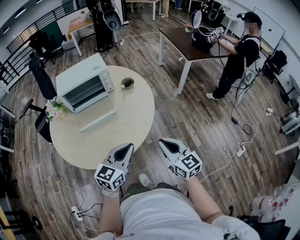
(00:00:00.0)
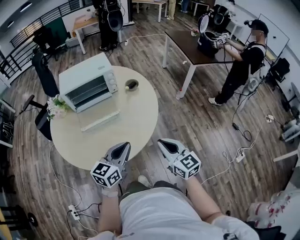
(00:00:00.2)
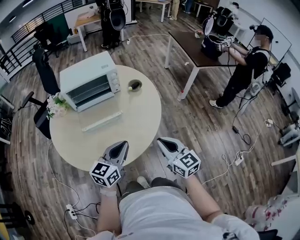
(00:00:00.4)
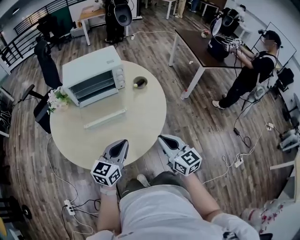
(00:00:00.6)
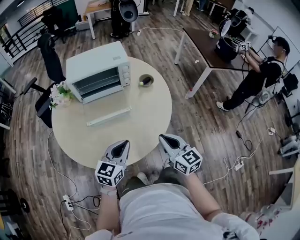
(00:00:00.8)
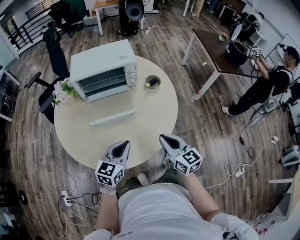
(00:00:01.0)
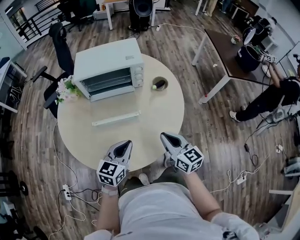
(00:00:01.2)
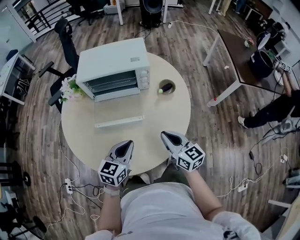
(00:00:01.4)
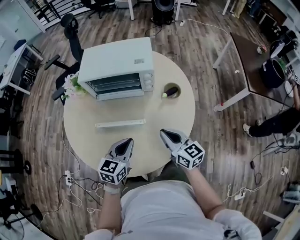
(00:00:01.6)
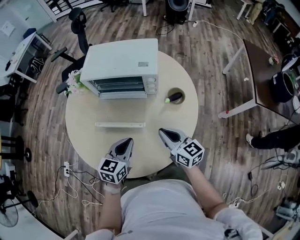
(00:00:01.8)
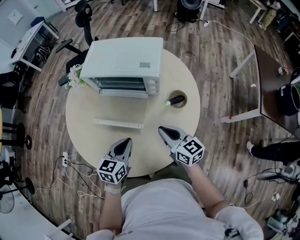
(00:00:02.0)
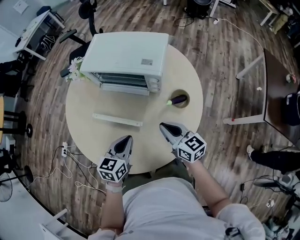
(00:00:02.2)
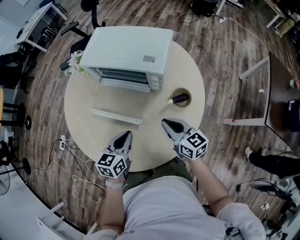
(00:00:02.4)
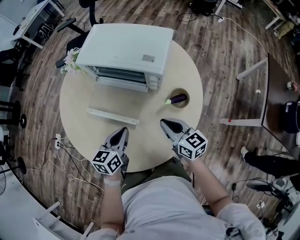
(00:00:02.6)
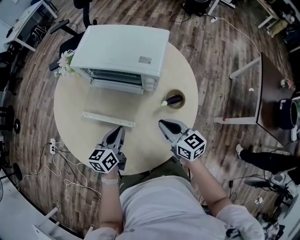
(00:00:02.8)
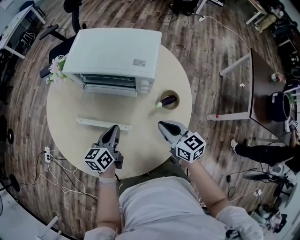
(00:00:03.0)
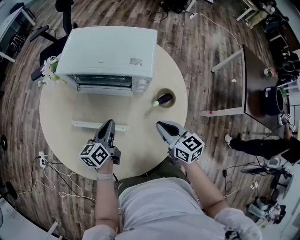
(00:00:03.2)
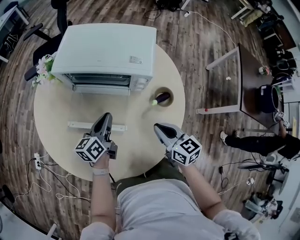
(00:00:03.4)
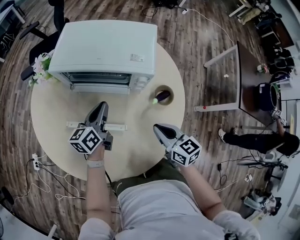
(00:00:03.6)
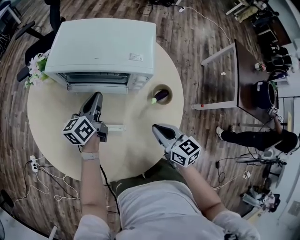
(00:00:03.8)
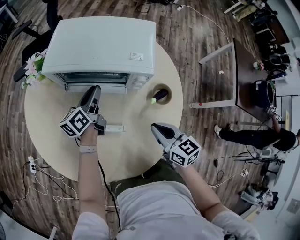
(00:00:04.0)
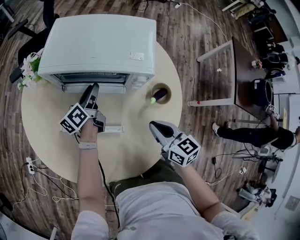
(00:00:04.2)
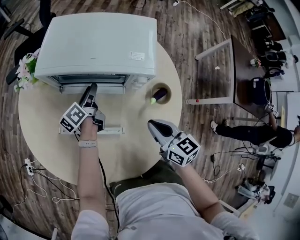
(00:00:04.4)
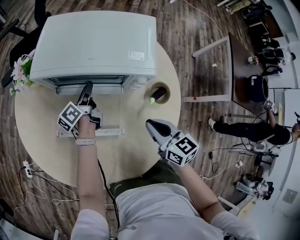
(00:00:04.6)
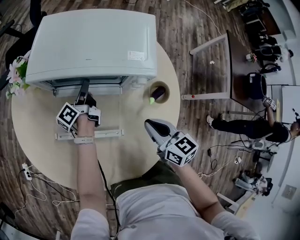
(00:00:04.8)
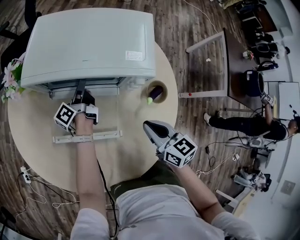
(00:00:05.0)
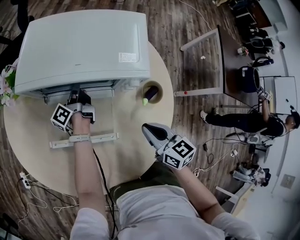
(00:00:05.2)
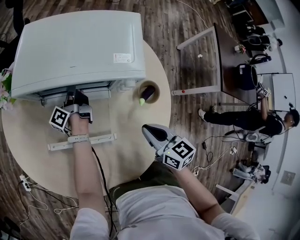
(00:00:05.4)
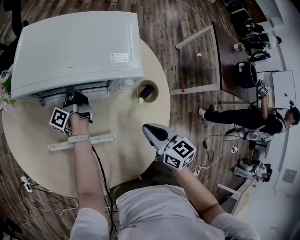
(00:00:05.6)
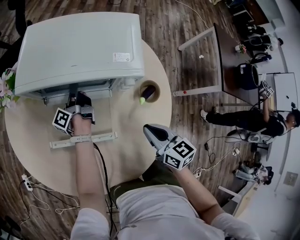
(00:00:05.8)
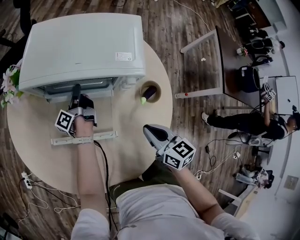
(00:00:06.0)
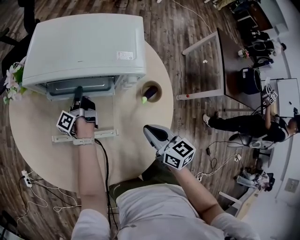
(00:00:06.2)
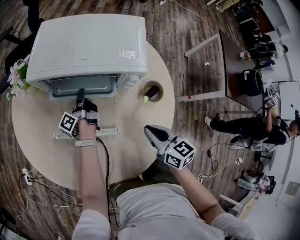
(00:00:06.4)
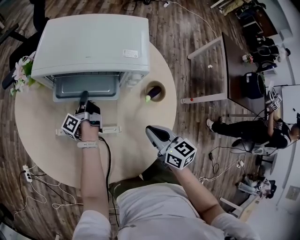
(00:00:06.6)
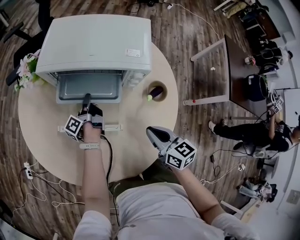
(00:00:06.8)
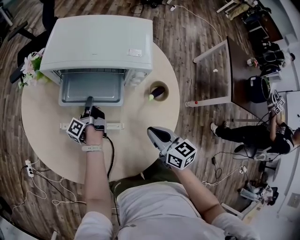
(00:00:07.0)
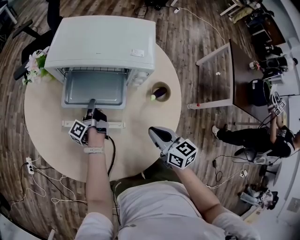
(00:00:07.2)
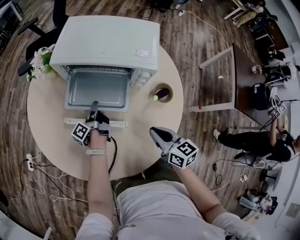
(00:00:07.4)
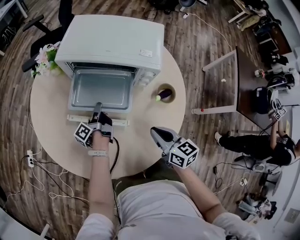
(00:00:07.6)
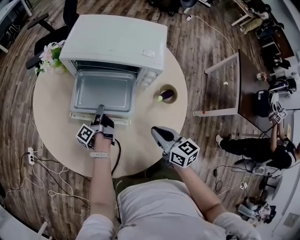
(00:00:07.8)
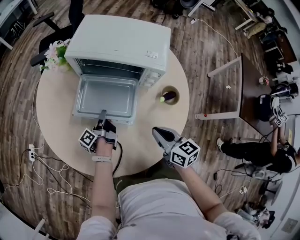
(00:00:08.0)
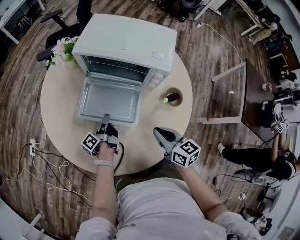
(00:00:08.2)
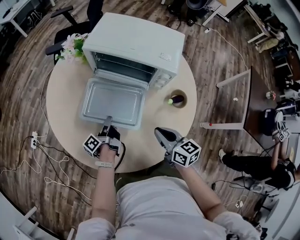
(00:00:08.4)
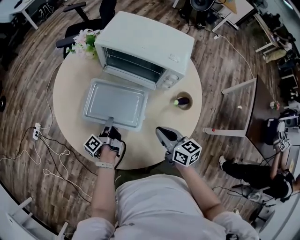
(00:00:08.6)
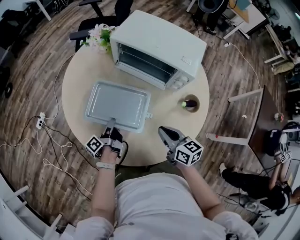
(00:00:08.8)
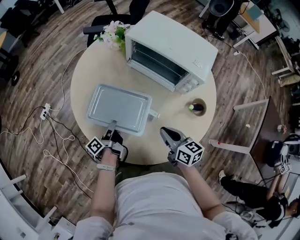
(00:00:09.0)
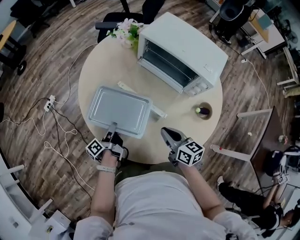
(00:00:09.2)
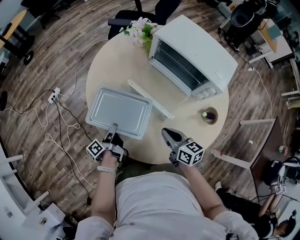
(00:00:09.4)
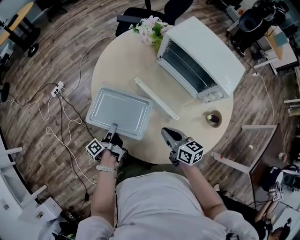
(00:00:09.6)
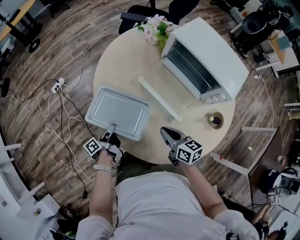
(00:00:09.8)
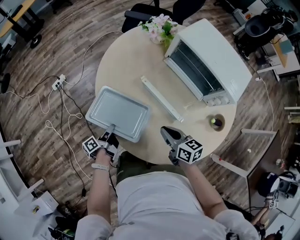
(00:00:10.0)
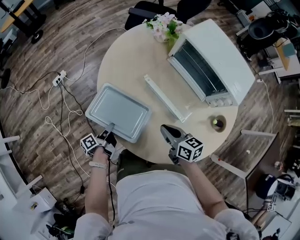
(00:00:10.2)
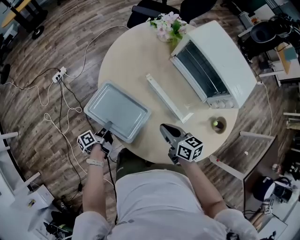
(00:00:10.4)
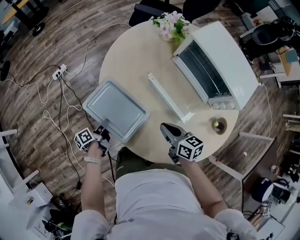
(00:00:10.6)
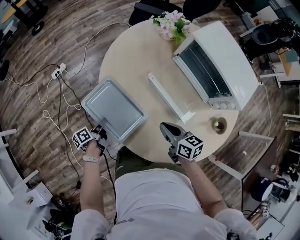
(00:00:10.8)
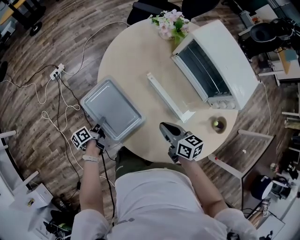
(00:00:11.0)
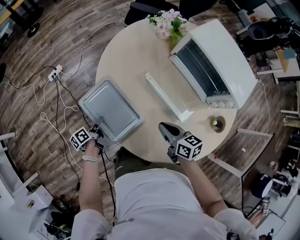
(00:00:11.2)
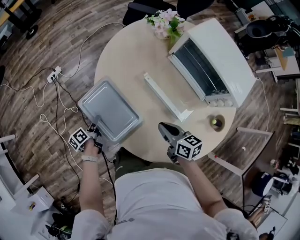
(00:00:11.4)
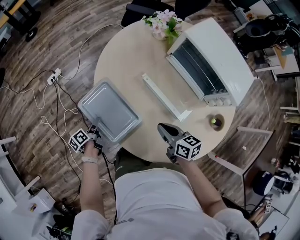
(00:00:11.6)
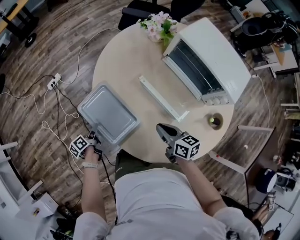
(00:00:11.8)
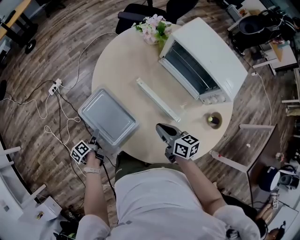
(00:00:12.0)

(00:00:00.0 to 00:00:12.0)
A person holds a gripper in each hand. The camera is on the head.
00:00:00.0 - 00:00:01.6: The right gripper moves about 30 cm, and rotates some 30 degrees.
00:00:01.6 - 00:00:03.0: The right gripper moves approximately 15 cm.
00:00:03.0 - 00:00:04.4: The right gripper changes place by about 5 cm.
00:00:06.0 - 00:00:07.6: The right gripper changes place by about 5 cm.
00:00:07.6 - 00:00:09.0: The right gripper changes place by about 5 cm, and rotates some 20 degrees.
00:00:09.0 - 00:00:10.4: The right gripper shifts by some 15 cm, and swivels some 20 degrees.

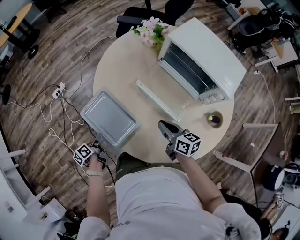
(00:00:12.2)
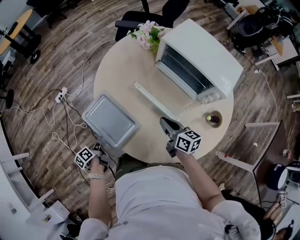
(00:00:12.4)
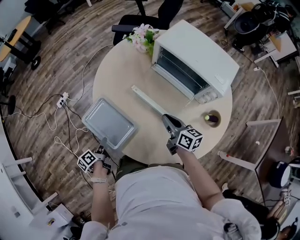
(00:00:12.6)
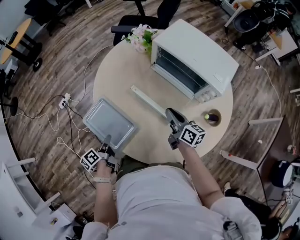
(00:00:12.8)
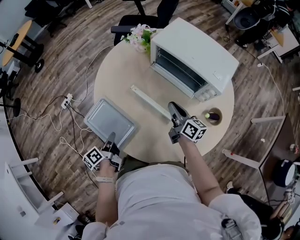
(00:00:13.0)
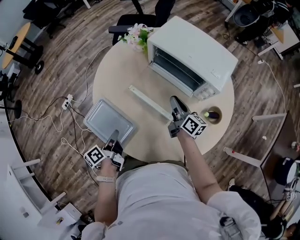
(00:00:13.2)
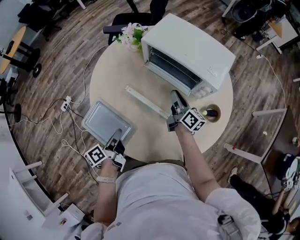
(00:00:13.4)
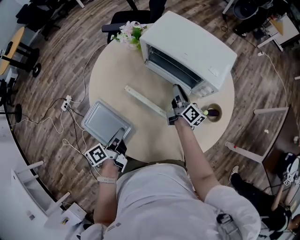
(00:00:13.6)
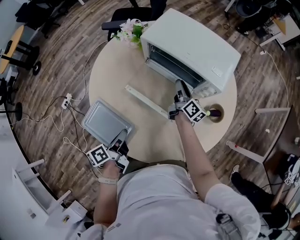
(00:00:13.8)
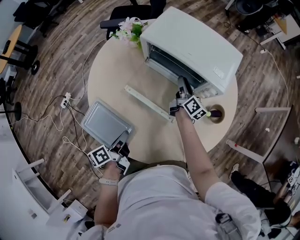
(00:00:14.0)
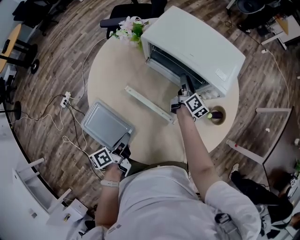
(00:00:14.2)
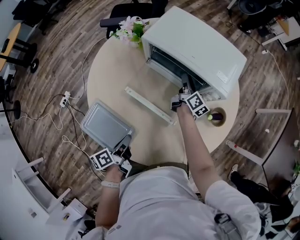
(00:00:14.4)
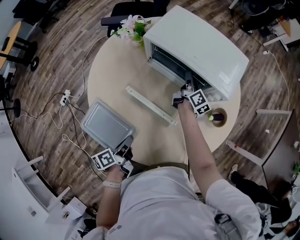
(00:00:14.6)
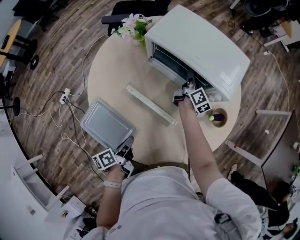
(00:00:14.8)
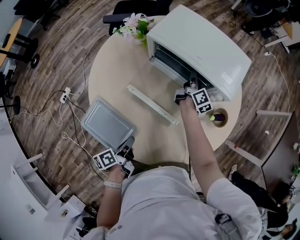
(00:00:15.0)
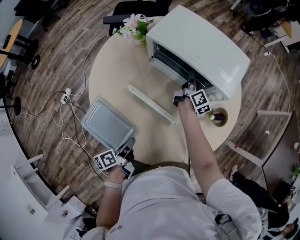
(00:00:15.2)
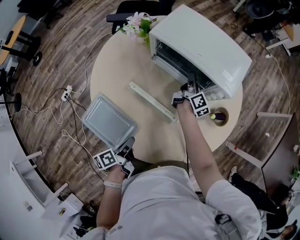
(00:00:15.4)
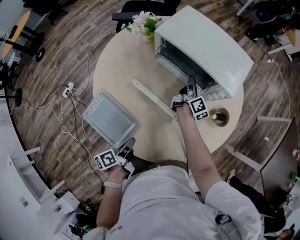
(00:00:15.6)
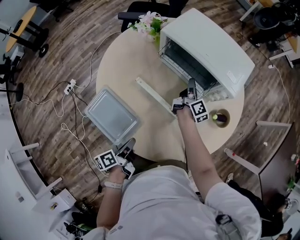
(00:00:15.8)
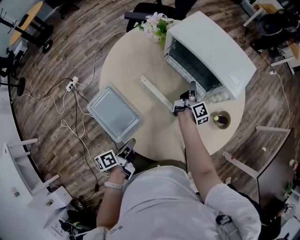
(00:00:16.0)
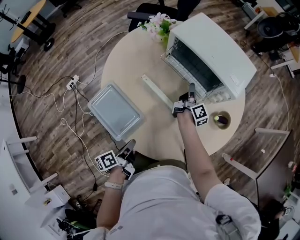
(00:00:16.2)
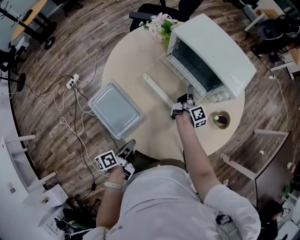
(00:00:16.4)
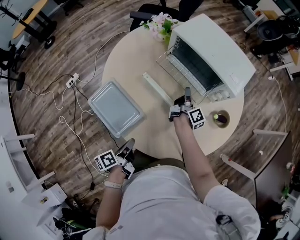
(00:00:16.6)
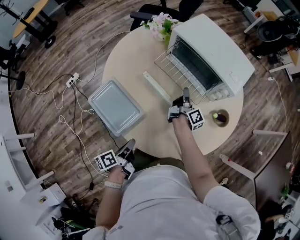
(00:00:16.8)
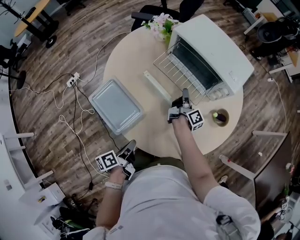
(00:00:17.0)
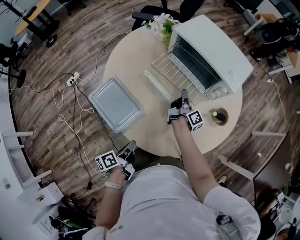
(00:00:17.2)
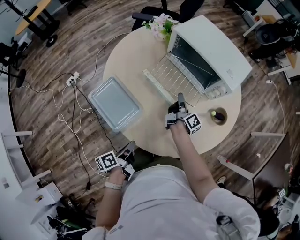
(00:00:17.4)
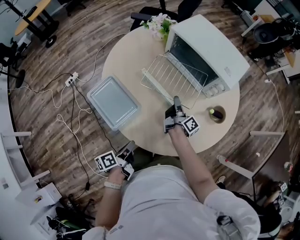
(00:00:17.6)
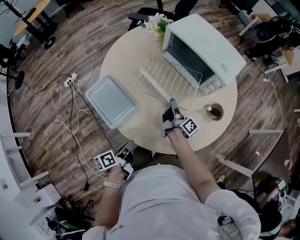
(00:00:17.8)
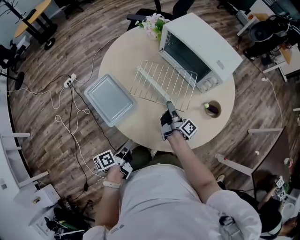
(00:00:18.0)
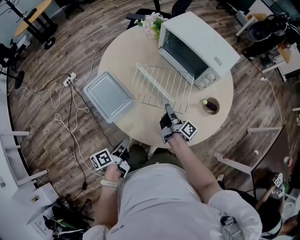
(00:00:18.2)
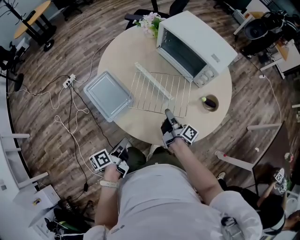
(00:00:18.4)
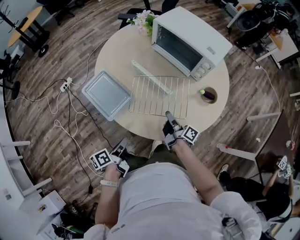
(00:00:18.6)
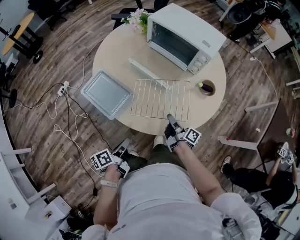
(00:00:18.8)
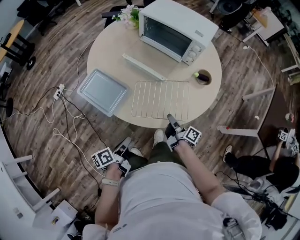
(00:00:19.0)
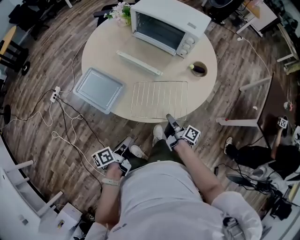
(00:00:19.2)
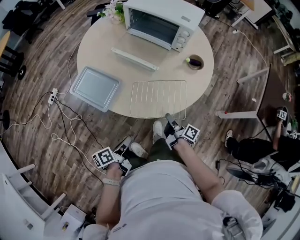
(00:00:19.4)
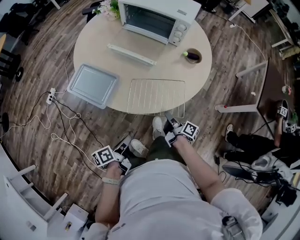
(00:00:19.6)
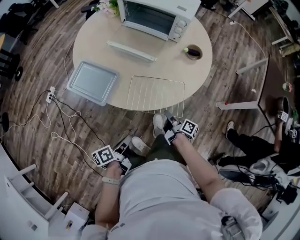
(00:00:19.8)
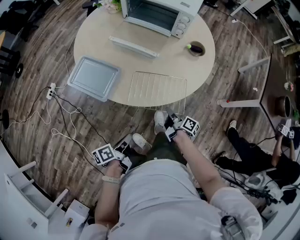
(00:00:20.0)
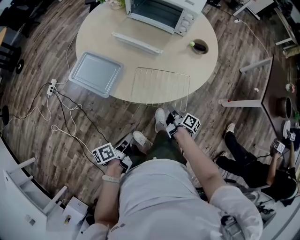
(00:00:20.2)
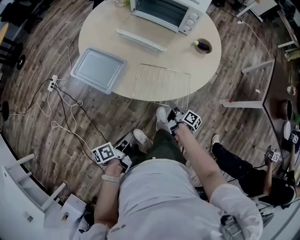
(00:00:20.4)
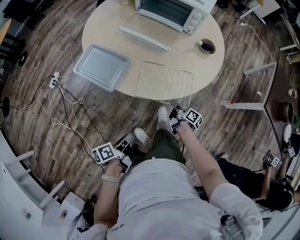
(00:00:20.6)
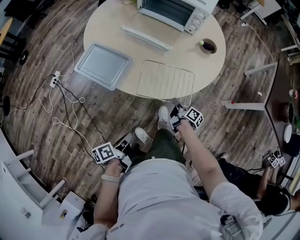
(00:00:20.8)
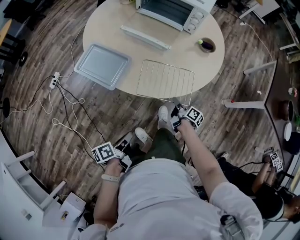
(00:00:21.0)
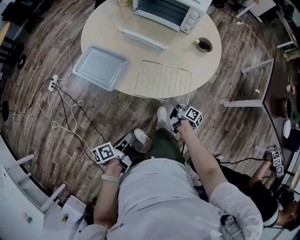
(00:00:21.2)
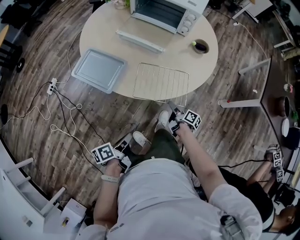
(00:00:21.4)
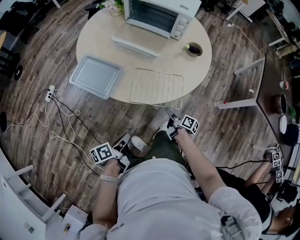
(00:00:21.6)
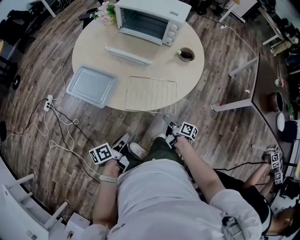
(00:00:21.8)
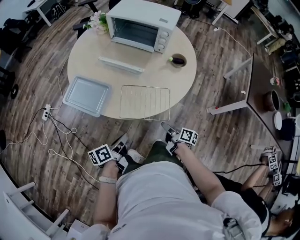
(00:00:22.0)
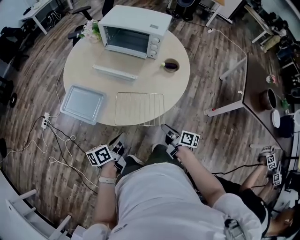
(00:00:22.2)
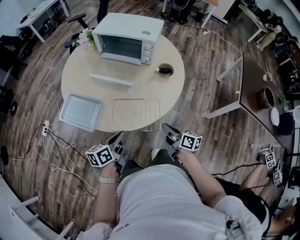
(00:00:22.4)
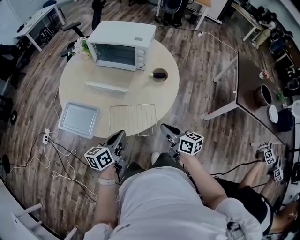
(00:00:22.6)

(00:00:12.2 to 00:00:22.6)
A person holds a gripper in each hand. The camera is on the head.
00:00:12.2 - 00:00:13.6: The right gripper moves approximately 25 cm, and changes its angle by about 40 degrees.
00:00:13.6 - 00:00:15.2: The right gripper shifts by some 10 cm, and rotates approximately 20 degrees.
00:00:15.2 - 00:00:16.6: The right gripper shifts by approximately 15 cm.
00:00:16.6 - 00:00:18.2: The right gripper shifts by about 20 cm, and swivels roughly 30 degrees.
00:00:18.2 - 00:00:19.6: The right gripper shifts by about 25 cm.
00:00:19.6 - 00:00:21.2: The right gripper moves downward, some 10 cm, and opens up.
00:00:21.2 - 00:00:22.6: The right gripper shifts some 25 cm upward, rotates around the line of its fingers by roughly 40 degrees, counterclockwise from behind, and closes.

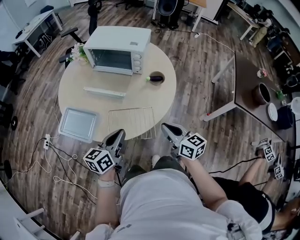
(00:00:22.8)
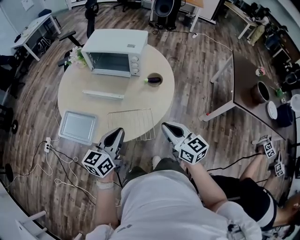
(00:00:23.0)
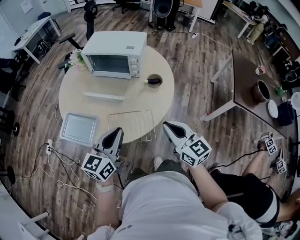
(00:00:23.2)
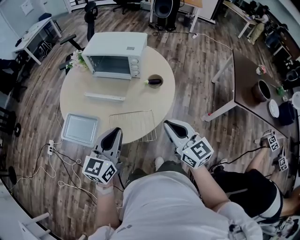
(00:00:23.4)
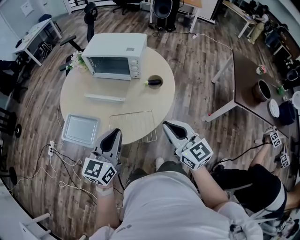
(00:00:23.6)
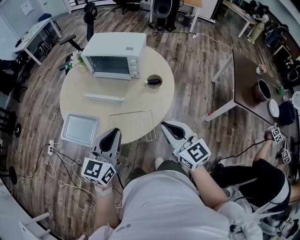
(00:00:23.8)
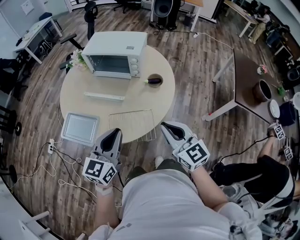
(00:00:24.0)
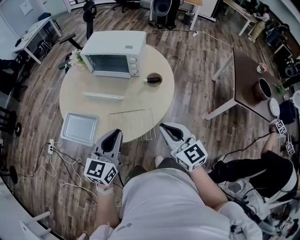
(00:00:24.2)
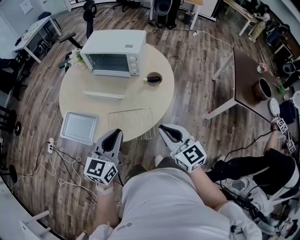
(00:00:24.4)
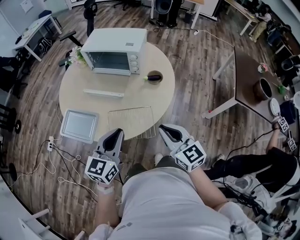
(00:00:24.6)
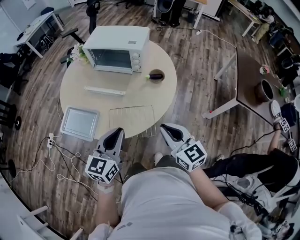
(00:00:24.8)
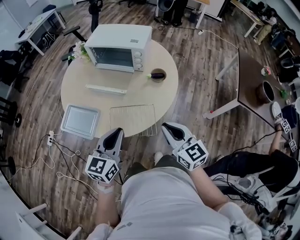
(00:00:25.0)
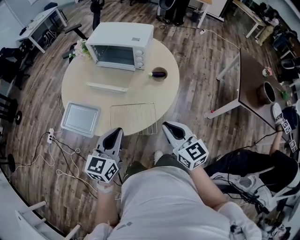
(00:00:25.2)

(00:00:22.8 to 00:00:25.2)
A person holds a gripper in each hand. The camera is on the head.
00:00:22.8 - 00:00:24.0: The right gripper goes some 10 cm upward, and swivels some 30 degrees.
